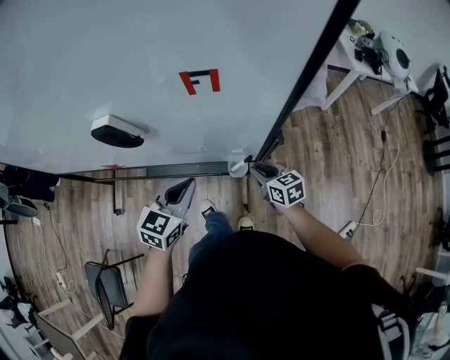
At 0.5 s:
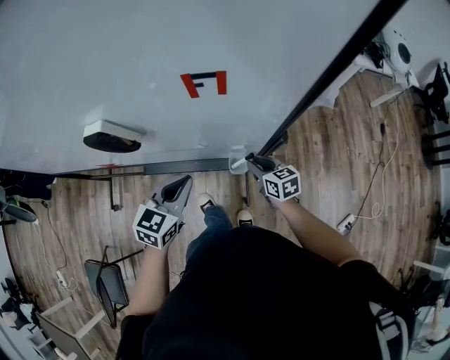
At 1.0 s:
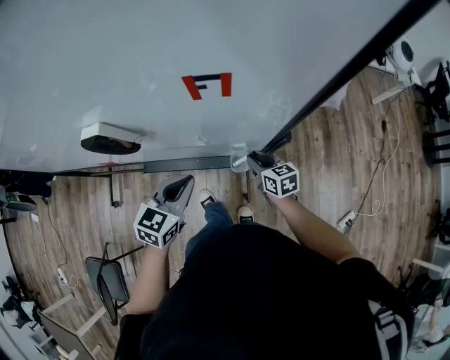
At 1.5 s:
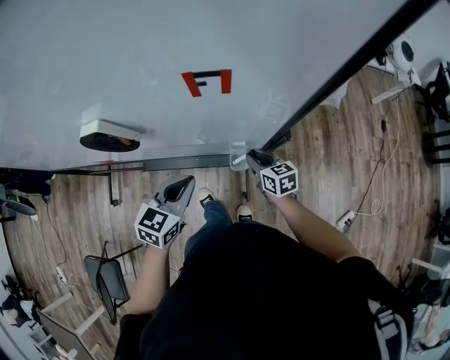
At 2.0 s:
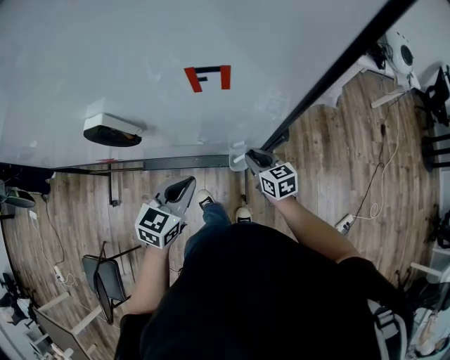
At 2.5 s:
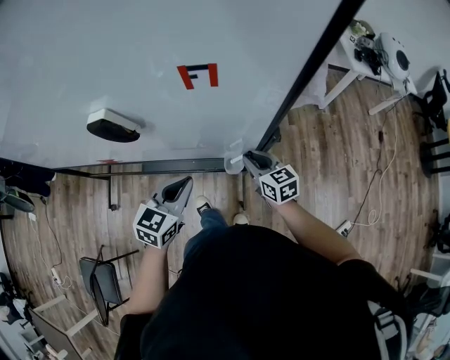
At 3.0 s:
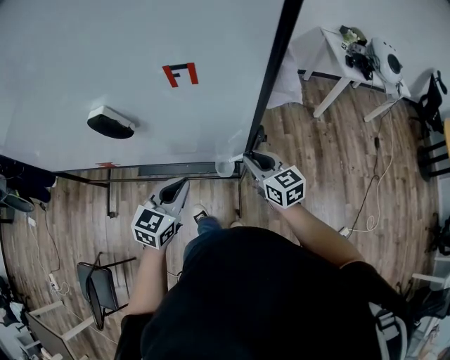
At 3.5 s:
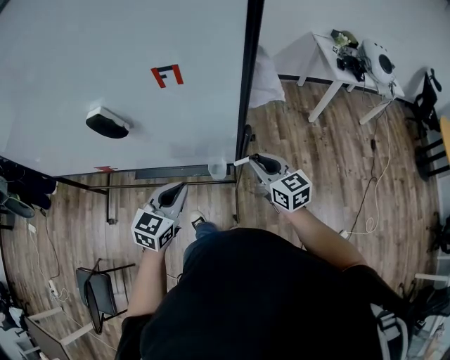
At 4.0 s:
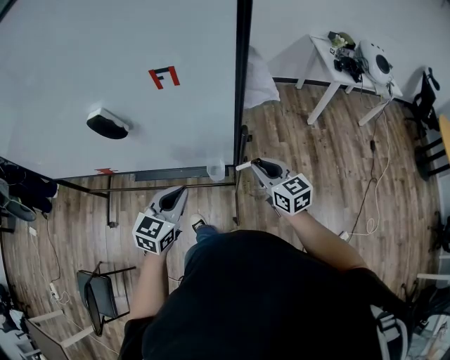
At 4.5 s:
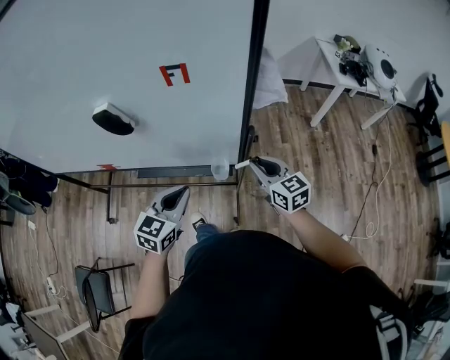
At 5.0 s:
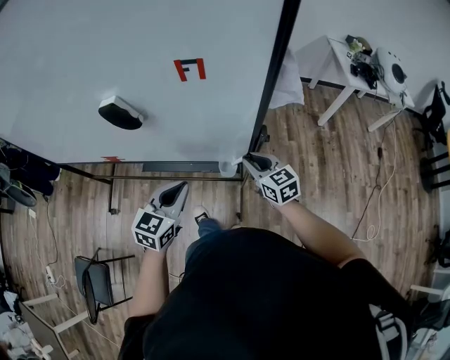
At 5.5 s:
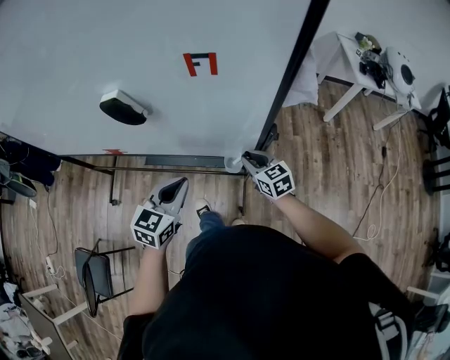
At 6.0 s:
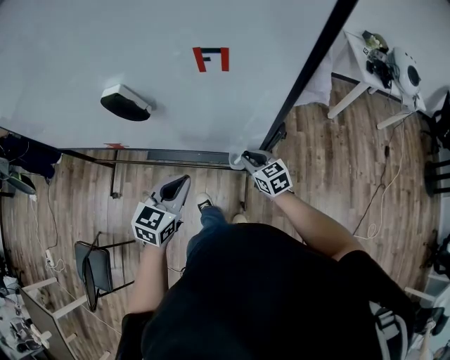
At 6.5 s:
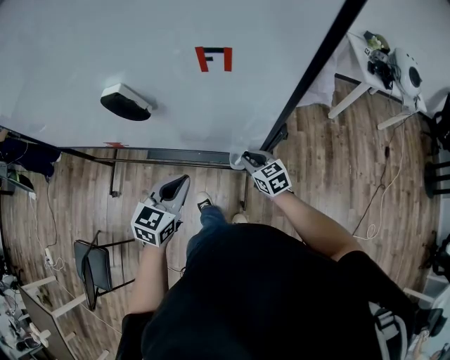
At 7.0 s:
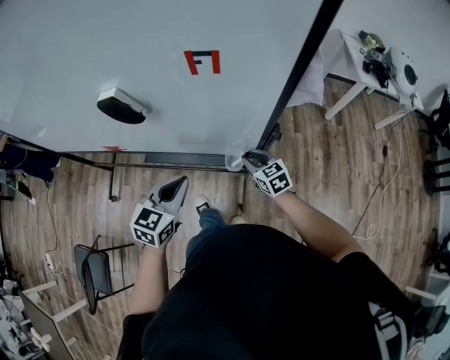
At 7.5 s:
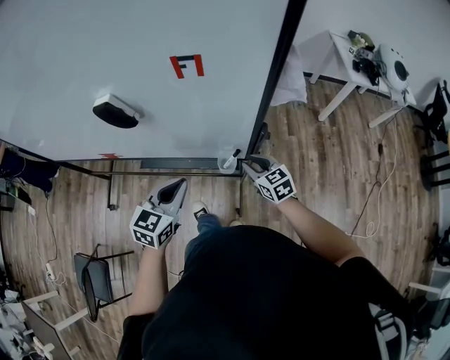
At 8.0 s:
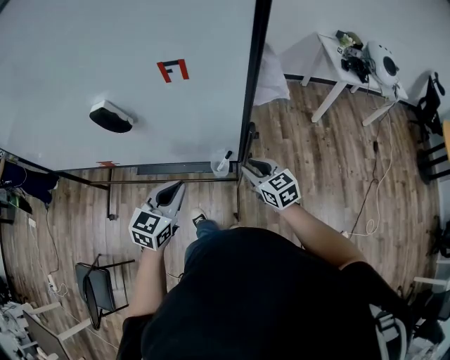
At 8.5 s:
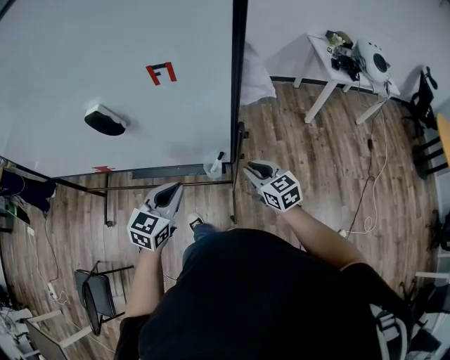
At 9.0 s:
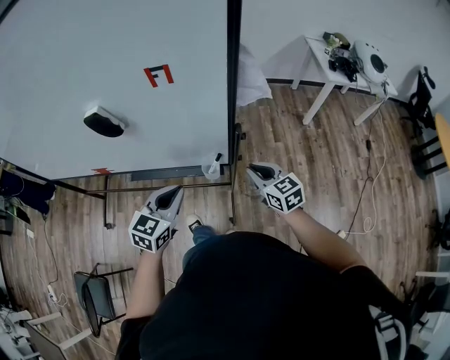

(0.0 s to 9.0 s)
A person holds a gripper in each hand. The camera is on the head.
0.0 s - 2.0 s: The grippers make only small movements.
2.0 s - 4.5 s: The right gripper heads upward, to the right and backward, covering some 15 cm, while the left gripper is displaced backward by approximately 5 cm.
4.5 s - 7.0 s: The left gripper changes place by some 5 cm. The right gripper moves downward and to the left, roughly 15 cm.
7.0 s - 9.0 s: The left gripper moves to the right, roughly 5 cm; the right gripper moves upward, to the right and backward, roughly 15 cm.

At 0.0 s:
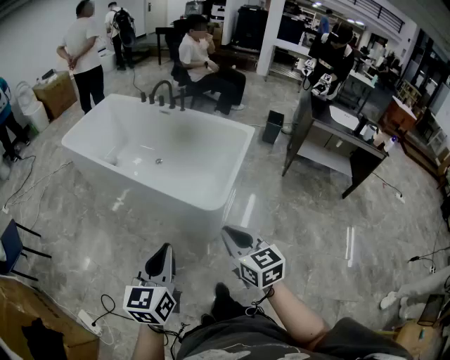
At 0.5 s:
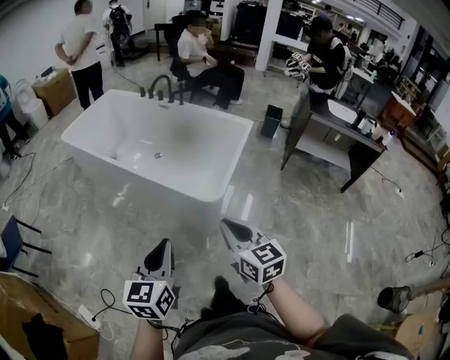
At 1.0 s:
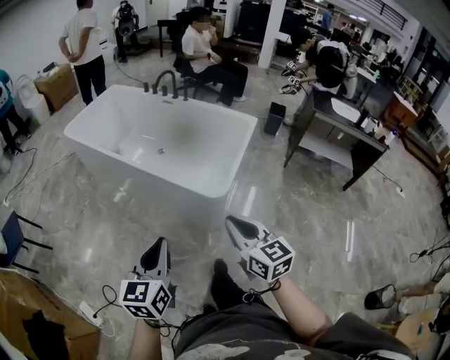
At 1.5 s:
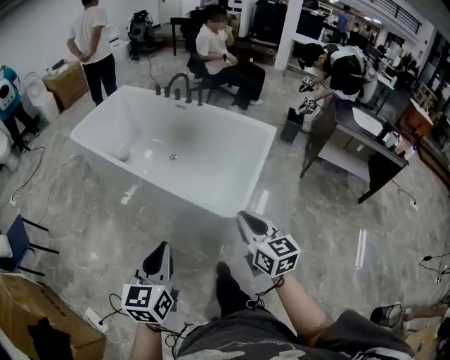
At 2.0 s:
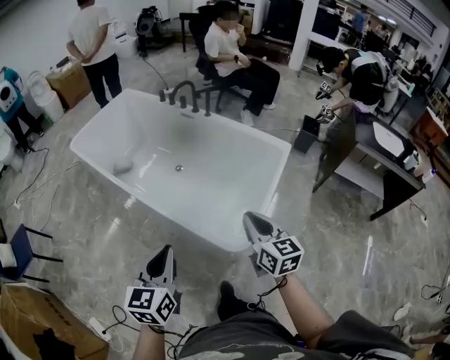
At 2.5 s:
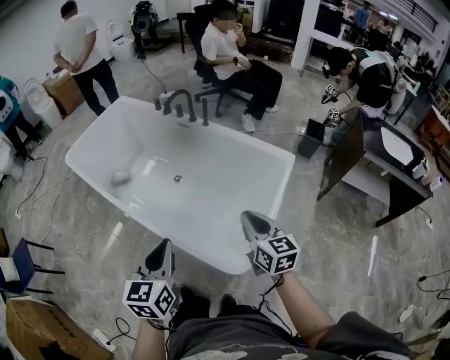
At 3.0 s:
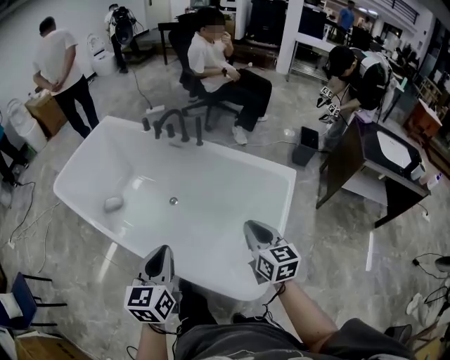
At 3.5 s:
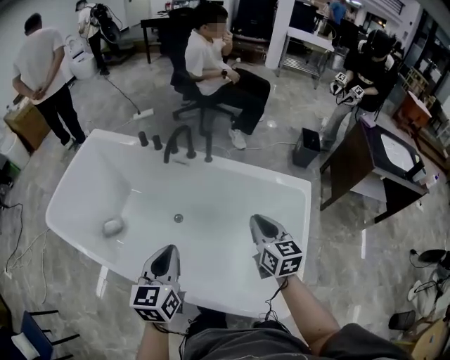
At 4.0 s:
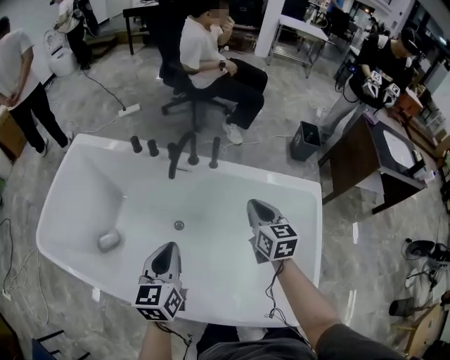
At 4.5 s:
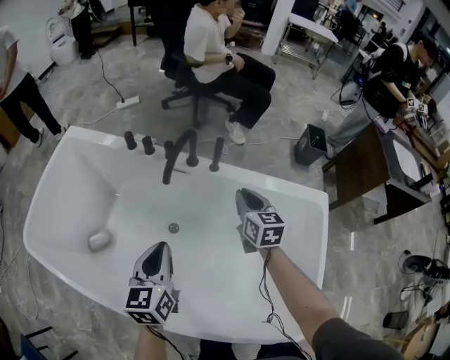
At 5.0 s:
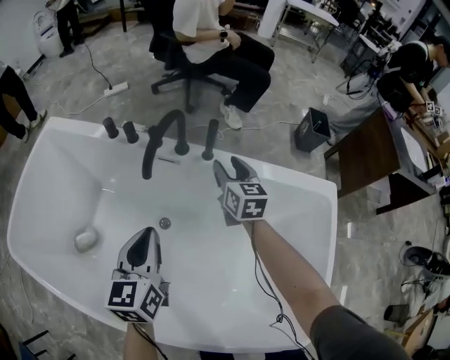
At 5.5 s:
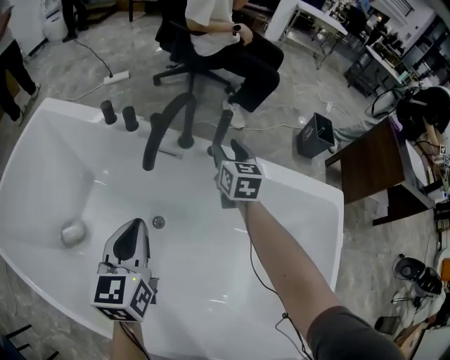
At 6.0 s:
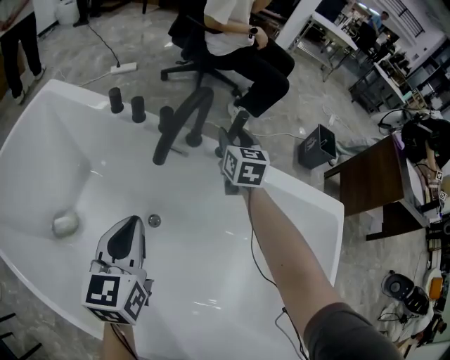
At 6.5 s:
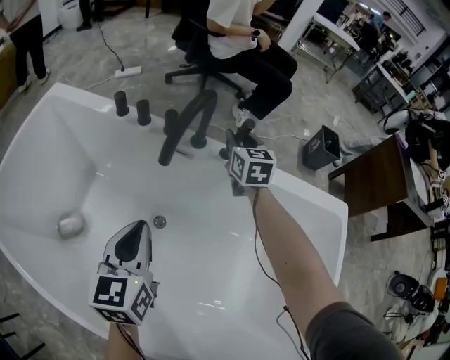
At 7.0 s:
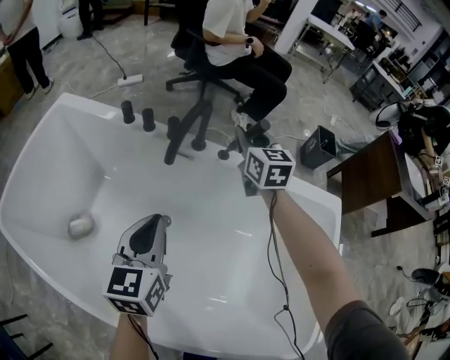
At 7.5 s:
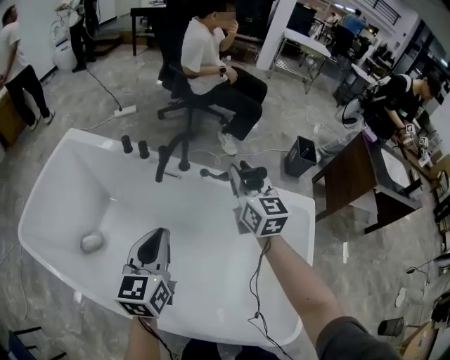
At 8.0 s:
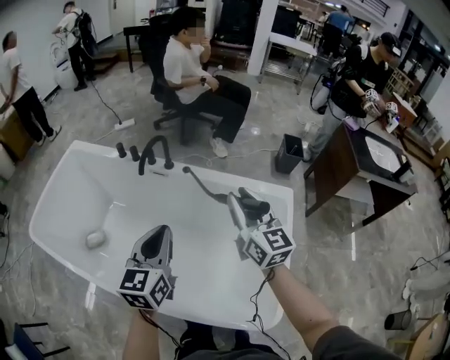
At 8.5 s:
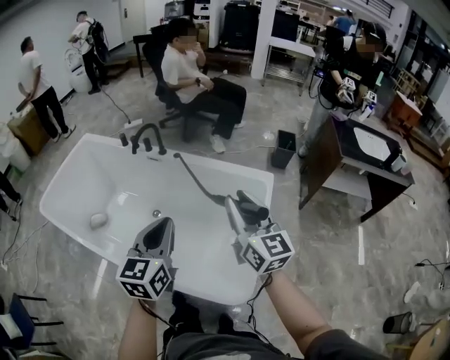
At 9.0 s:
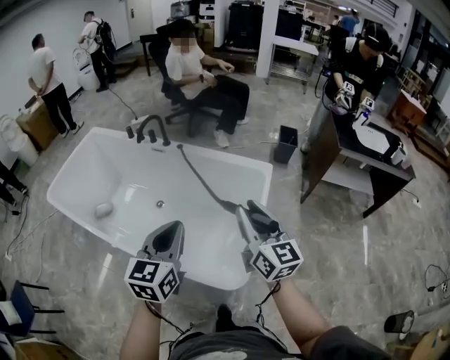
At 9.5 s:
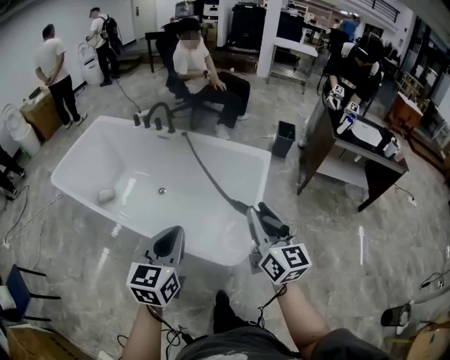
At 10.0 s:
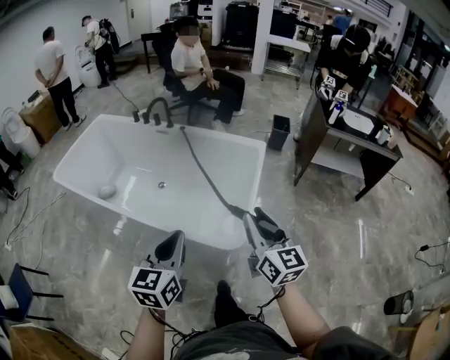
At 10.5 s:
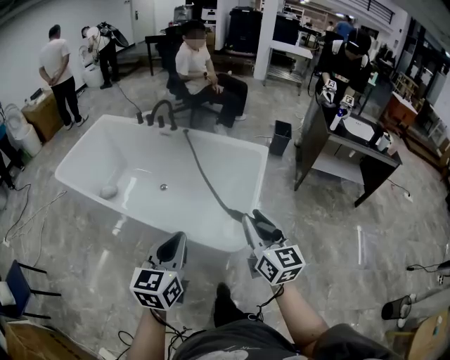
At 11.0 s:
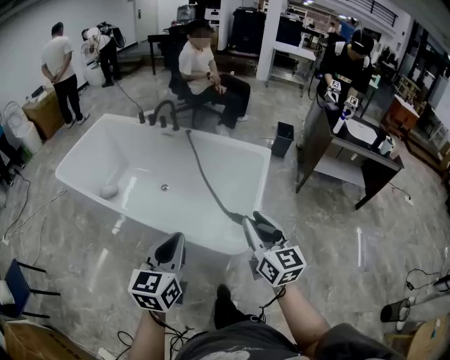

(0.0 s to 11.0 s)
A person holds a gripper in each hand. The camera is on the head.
0.0 s - 2.0 s: The two grippers go roughly 30 cm forward.
2.0 s - 3.5 s: Both grippers are carried forward, approximately 40 cm.
3.5 s - 5.5 s: Both grippers travel together forward and downward, about 40 cm. The right gripper opens its fingers.
5.5 s - 7.5 s: The right gripper travels upward and backward by about 30 cm. The left gripper moves upward and backward, about 20 cm.
7.5 s - 9.0 s: The two grippers travel together, backward and to the right, some 50 cm.
9.0 s - 11.0 s: Both grippers move backward, about 20 cm.

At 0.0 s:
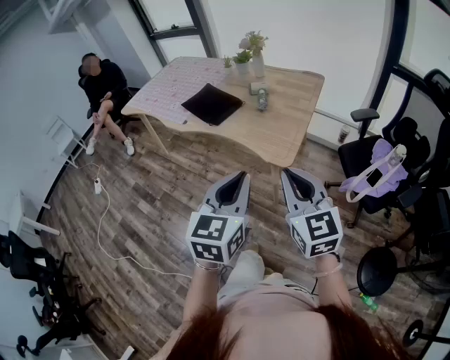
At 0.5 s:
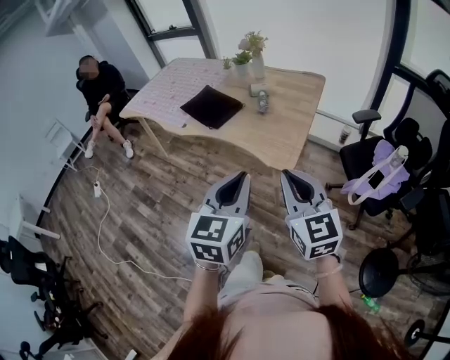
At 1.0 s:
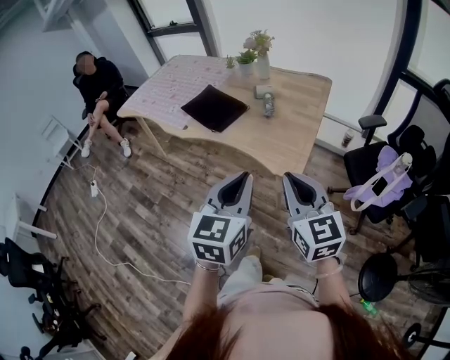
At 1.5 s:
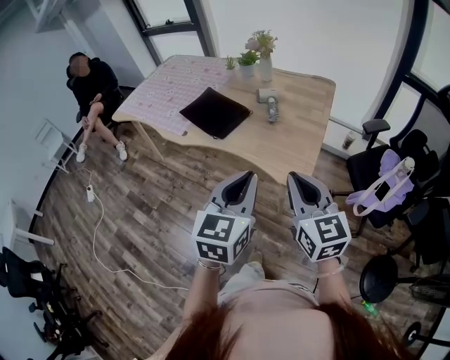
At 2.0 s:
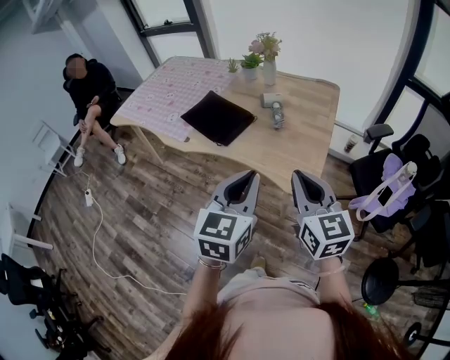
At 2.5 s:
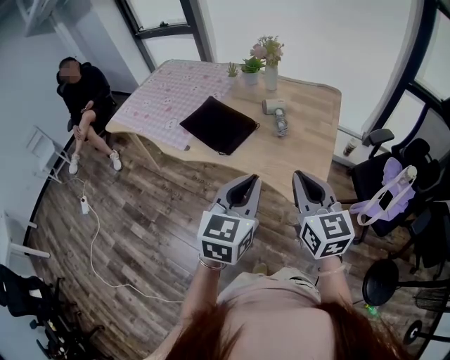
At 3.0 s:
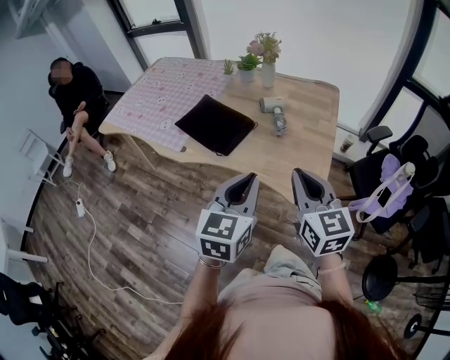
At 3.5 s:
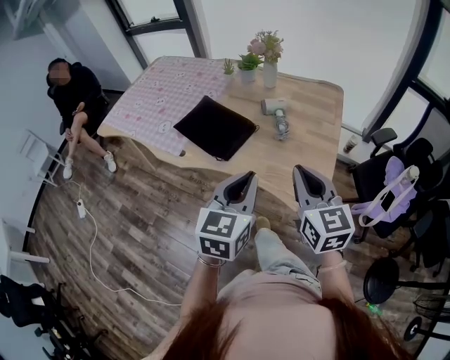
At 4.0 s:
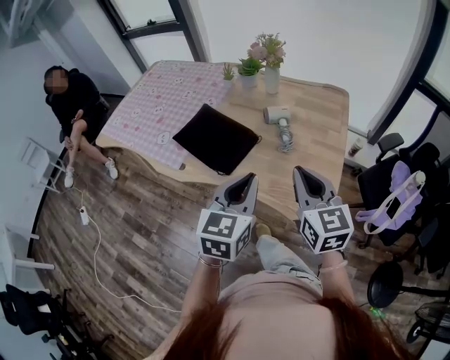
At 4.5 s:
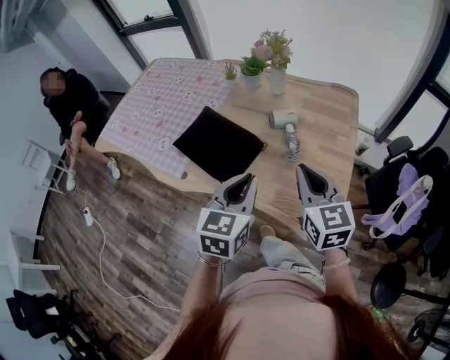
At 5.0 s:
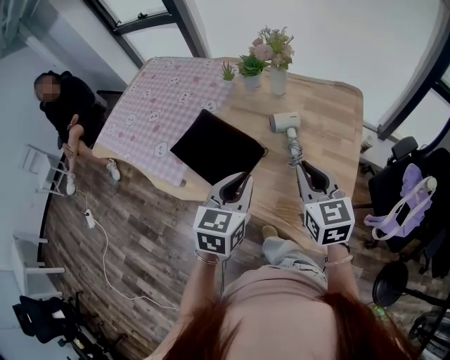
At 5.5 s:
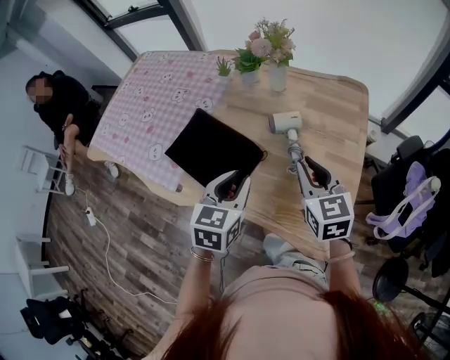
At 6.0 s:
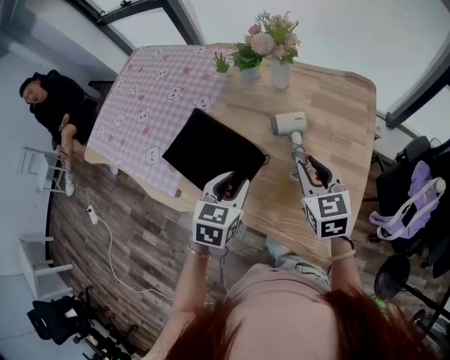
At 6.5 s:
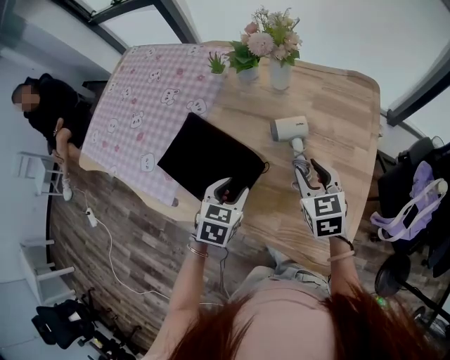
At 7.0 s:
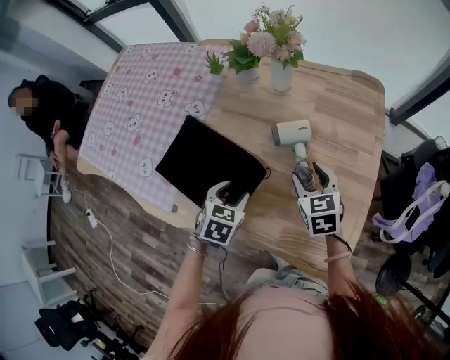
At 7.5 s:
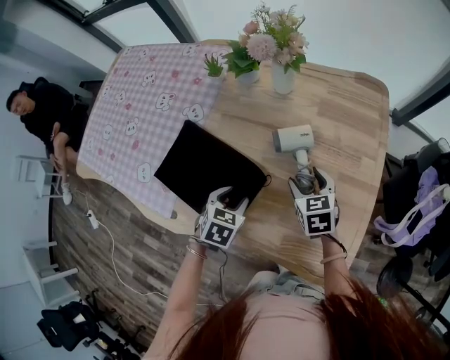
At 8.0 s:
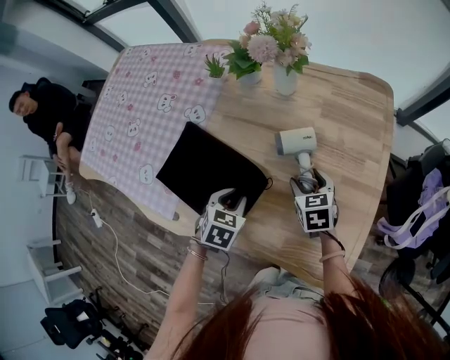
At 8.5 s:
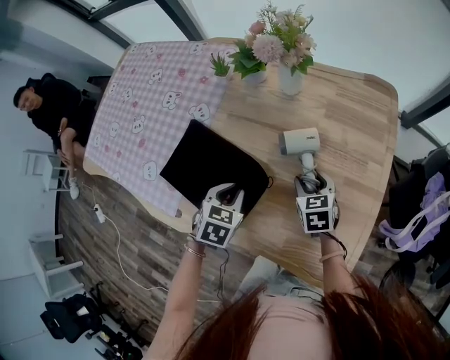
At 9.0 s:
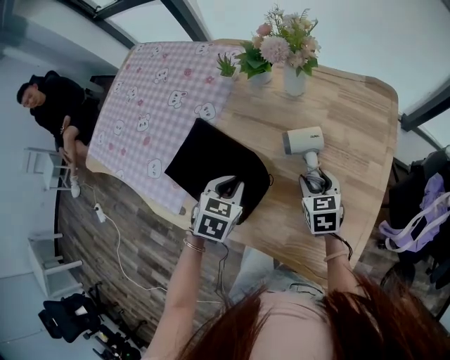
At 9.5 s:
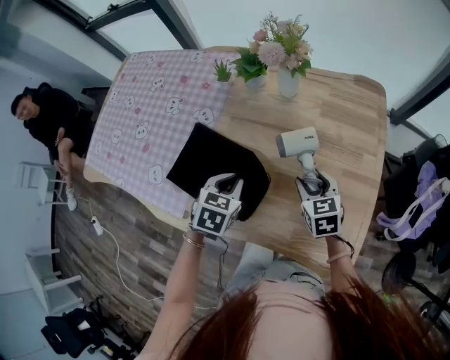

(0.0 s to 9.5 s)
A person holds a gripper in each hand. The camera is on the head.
0.0 s - 2.0 s: The grippers both shift forward by about 20 cm.
2.0 s - 4.0 s: The grippers both shift forward by roughly 20 cm.
4.0 s - 5.5 s: The grippers both shift forward and downward by roughly 20 cm.
5.5 s - 7.5 s: Both grippers travel together downward and forward, approximately 20 cm. The left gripper turns by roughly 30 degrees, and opens up. Meanwhile the right gripper changes its angle by some 20 degrees, and opens its fingers.
7.5 s - 9.5 s: The left gripper heads upward, covering some 10 cm, and closes up.
